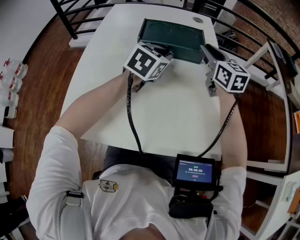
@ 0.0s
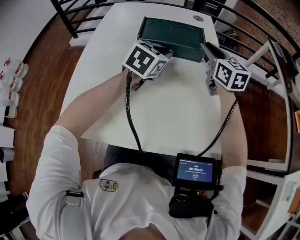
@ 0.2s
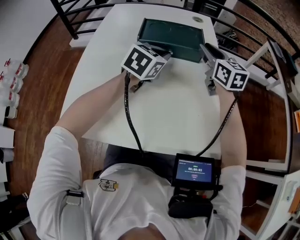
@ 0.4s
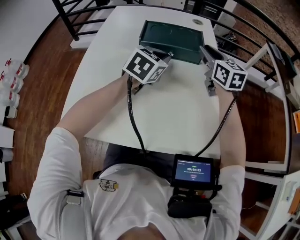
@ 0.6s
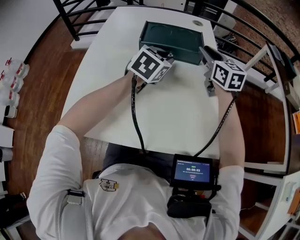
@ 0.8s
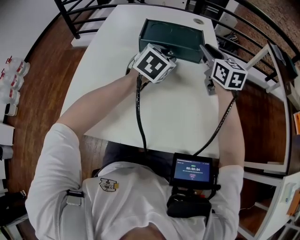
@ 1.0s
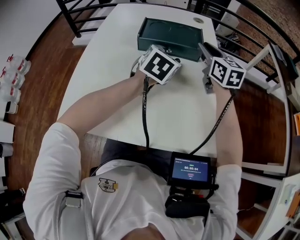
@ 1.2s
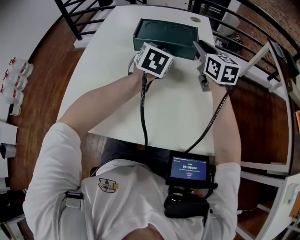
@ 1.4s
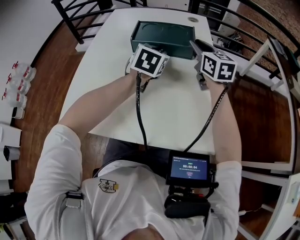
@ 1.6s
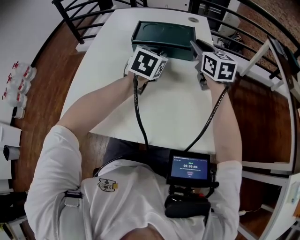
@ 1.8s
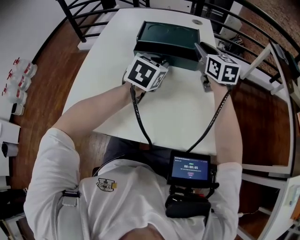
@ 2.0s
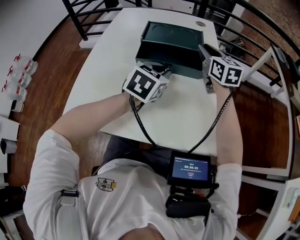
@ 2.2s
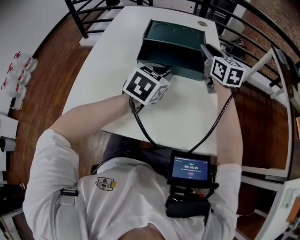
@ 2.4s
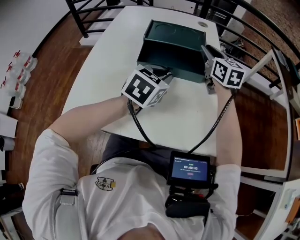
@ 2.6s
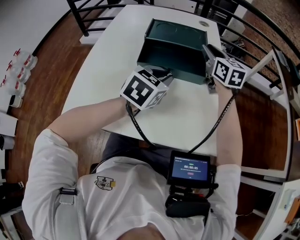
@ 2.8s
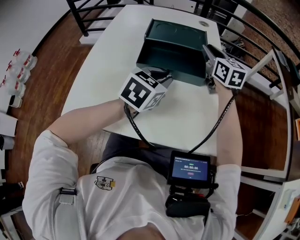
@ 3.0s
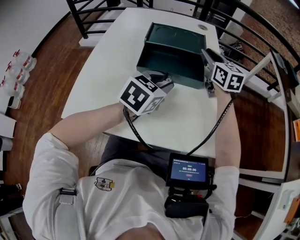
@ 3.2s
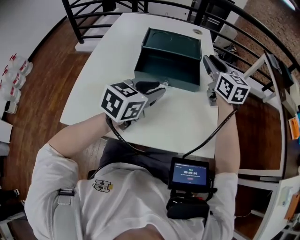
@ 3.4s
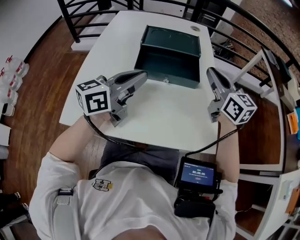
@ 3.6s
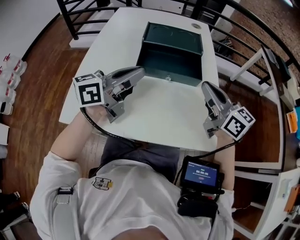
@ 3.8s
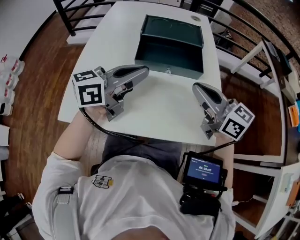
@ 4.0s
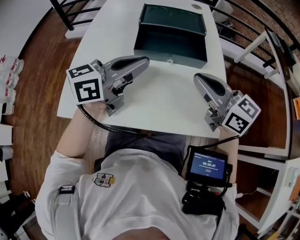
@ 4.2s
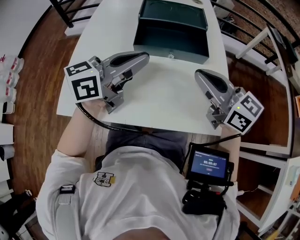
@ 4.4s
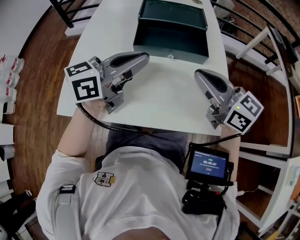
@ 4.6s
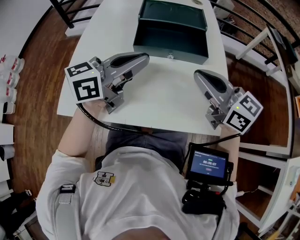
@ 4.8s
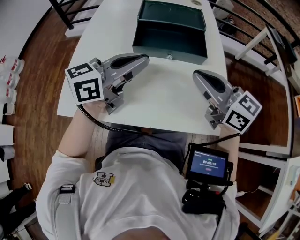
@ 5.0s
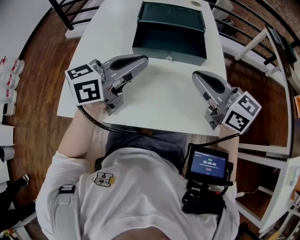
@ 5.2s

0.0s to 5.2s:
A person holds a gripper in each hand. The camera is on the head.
0.0s to 1.8s: The left gripper opens, then closes again.
1.8s to 3.4s: The left gripper travels backward by roughly 15 cm, and changes its angle by about 20 degrees, while the right gripper changes place by roughly 5 cm.
3.4s to 5.2s: The right gripper travels backward by about 20 cm, swivels roughly 30 degrees, and closes up, while the left gripper shifts about 5 cm to the left, changes its angle by approximately 30 degrees, and closes.

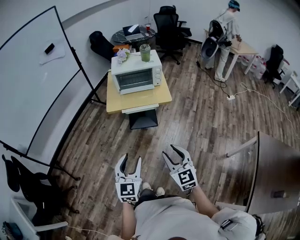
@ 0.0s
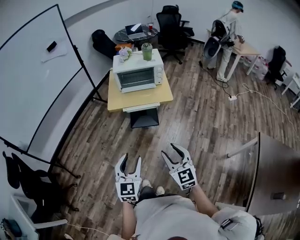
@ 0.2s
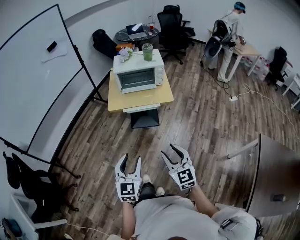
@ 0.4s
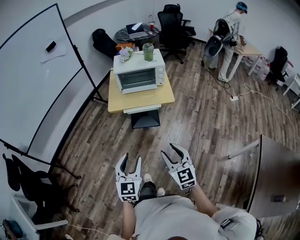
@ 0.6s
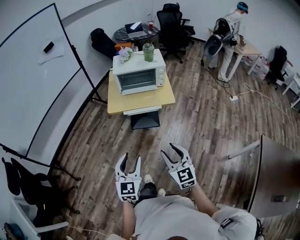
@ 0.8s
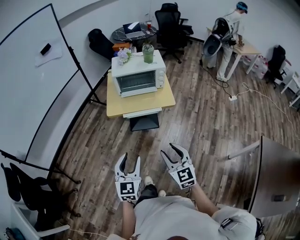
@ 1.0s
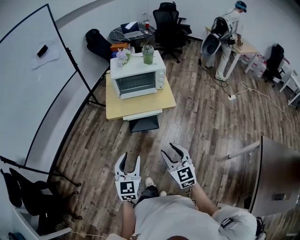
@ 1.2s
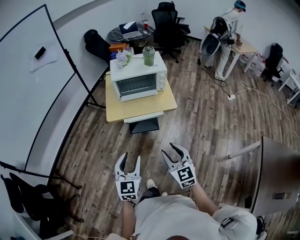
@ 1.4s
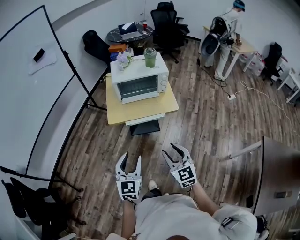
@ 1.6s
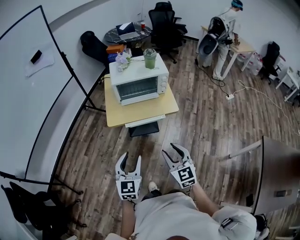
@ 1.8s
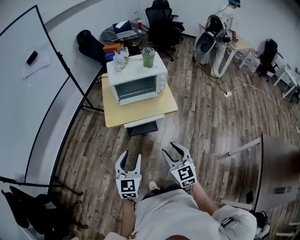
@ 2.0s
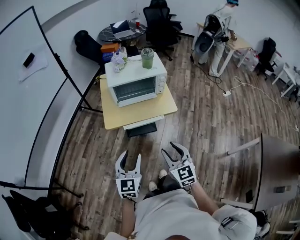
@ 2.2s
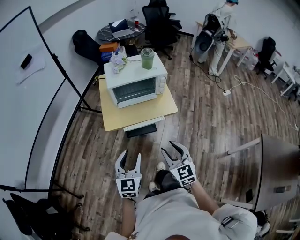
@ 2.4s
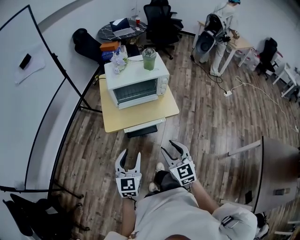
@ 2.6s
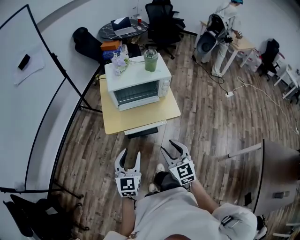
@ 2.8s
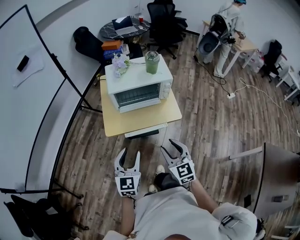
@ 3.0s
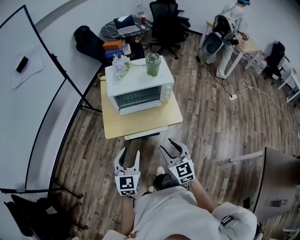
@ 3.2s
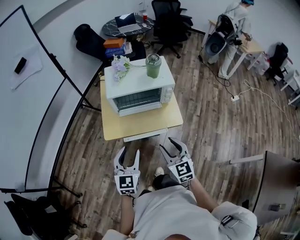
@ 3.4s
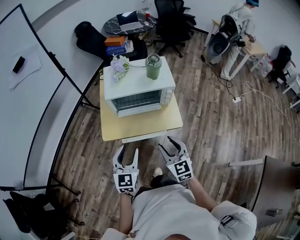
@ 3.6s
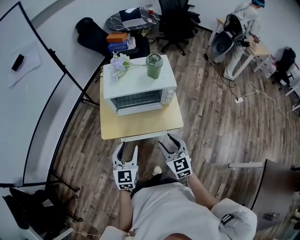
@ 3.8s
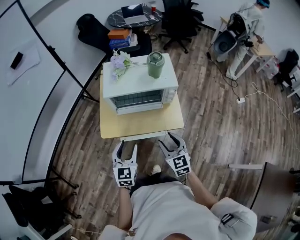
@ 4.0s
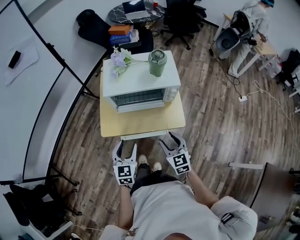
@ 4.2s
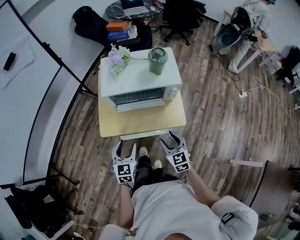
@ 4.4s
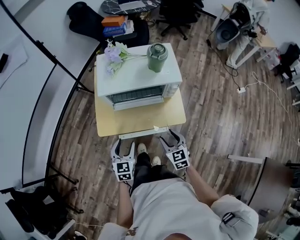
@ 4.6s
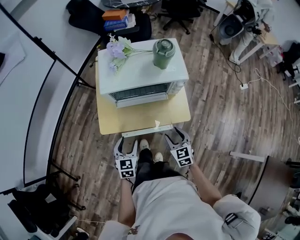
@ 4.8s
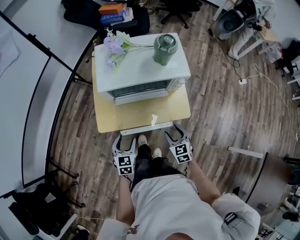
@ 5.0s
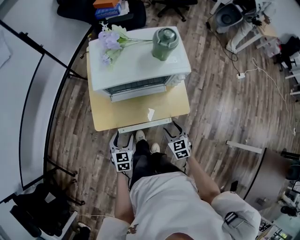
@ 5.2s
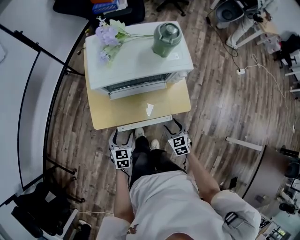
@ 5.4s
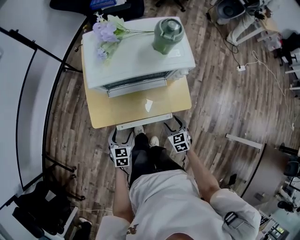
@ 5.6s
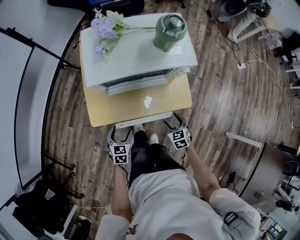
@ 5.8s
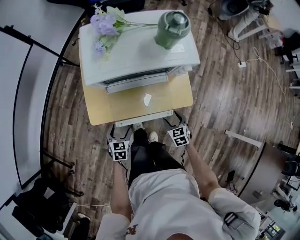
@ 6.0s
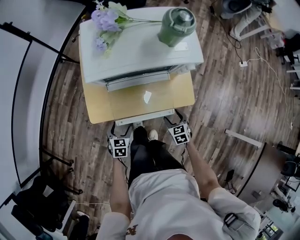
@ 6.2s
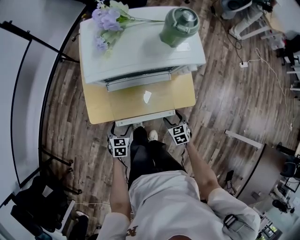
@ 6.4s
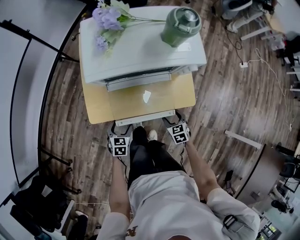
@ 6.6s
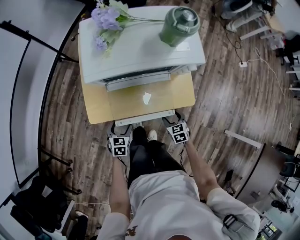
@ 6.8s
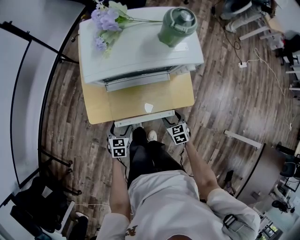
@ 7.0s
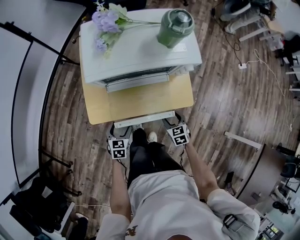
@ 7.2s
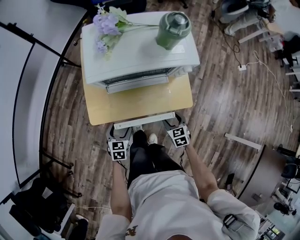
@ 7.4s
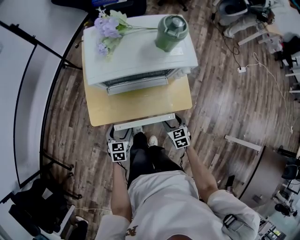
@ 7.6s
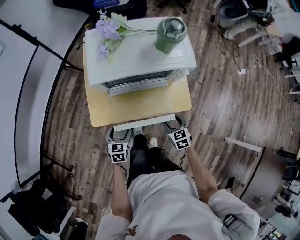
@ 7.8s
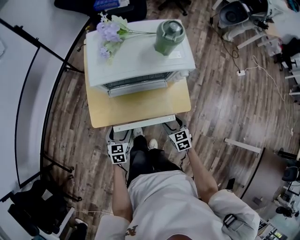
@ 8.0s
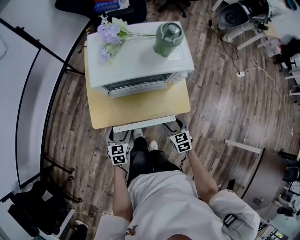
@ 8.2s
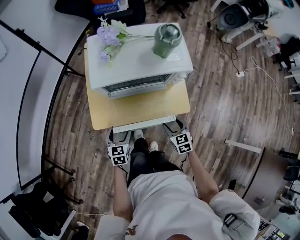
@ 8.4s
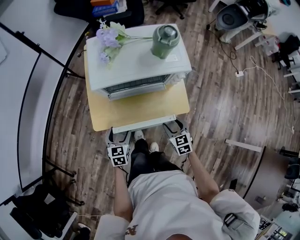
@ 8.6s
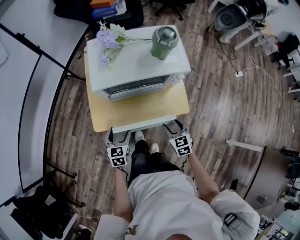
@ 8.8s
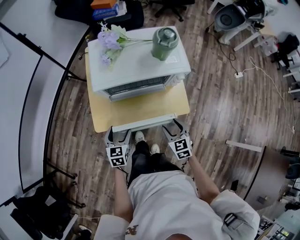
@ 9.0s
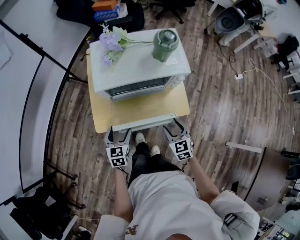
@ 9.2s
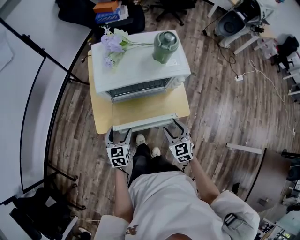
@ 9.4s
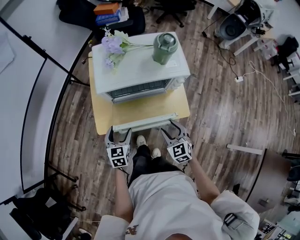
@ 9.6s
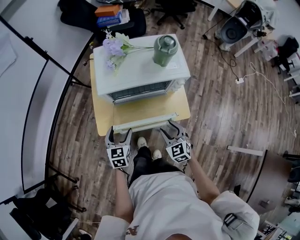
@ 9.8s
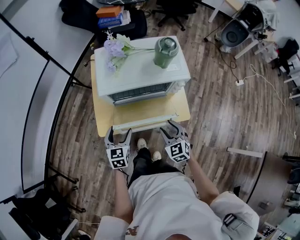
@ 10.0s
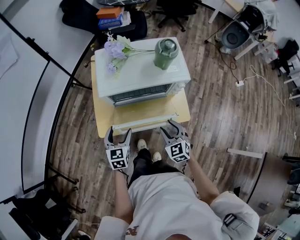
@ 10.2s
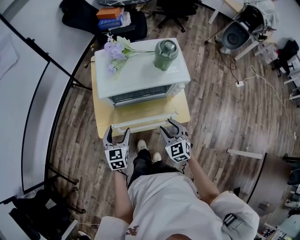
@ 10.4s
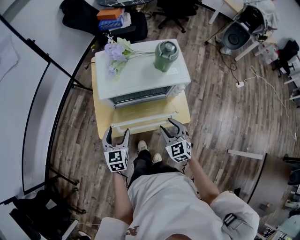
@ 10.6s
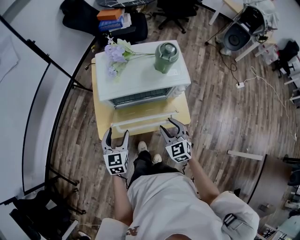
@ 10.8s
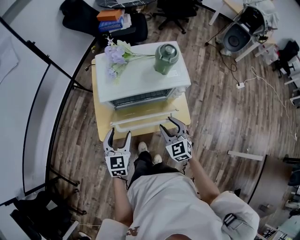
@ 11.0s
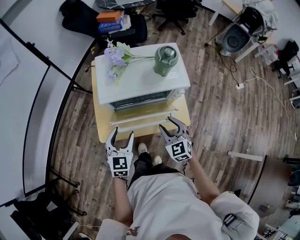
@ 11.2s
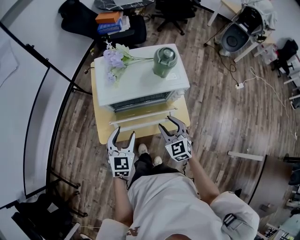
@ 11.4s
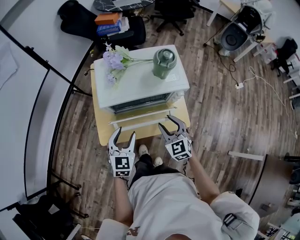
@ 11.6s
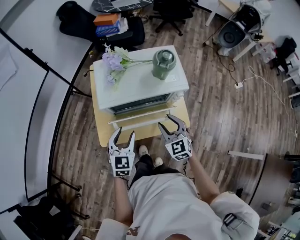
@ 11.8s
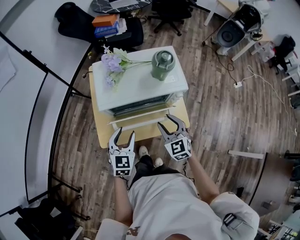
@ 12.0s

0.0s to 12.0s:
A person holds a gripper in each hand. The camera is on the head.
0.0s to 1.6s: The two grippers go about 15 cm forward.
1.6s to 3.0s: The grippers both shift forward by approximately 15 cm.
3.0s to 4.4s: The right gripper is displaced forward, downward and to the right by approximately 20 cm. Meanwhile the left gripper heads forward and downward, covering some 20 cm.
4.4s to 6.0s: Both grippers move downward, about 20 cm. The left gripper swivels about 30 degrees. Meanwhile the right gripper changes its angle by roughly 30 degrees.
6.0s to 7.6s: The grippers make only small movements.
7.6s to 9.0s: The grippers both shift upward by roughly 10 cm.
9.0s to 10.4s: Both grippers travel together upward, about 5 cm.
10.4s to 12.0s: The left gripper goes roughly 5 cm upward, and closes, while the right gripper goes approximately 10 cm forward and upward.

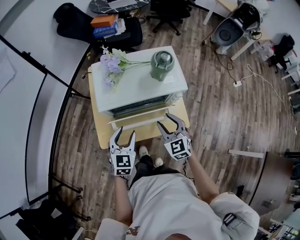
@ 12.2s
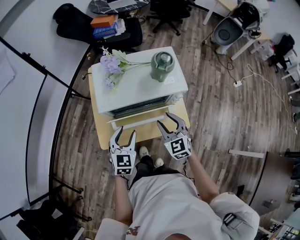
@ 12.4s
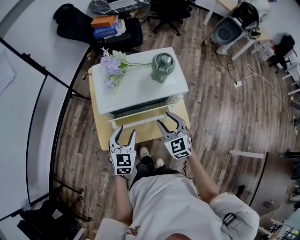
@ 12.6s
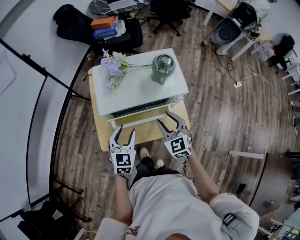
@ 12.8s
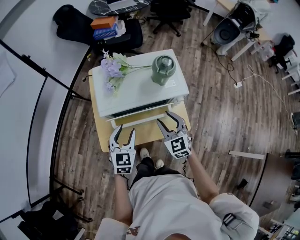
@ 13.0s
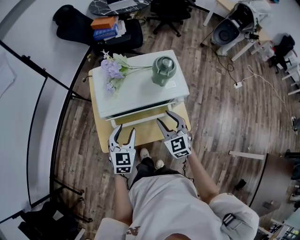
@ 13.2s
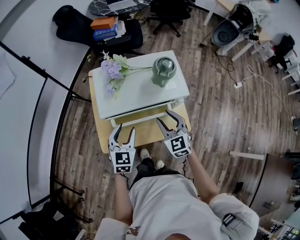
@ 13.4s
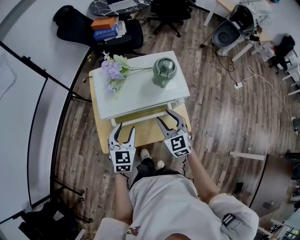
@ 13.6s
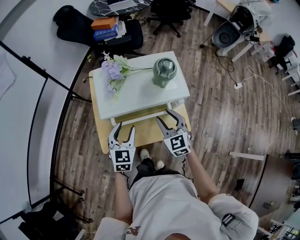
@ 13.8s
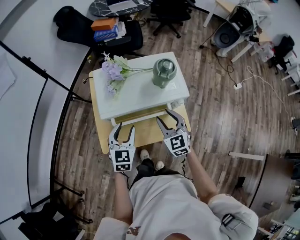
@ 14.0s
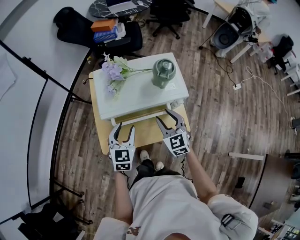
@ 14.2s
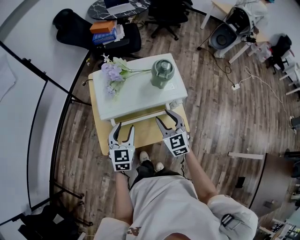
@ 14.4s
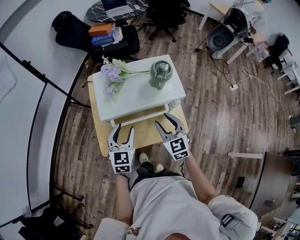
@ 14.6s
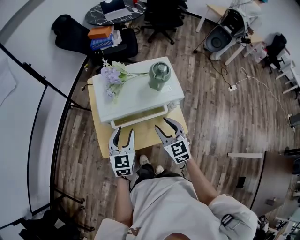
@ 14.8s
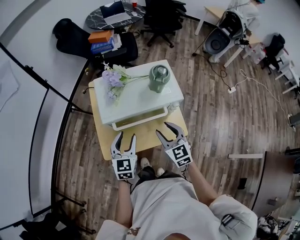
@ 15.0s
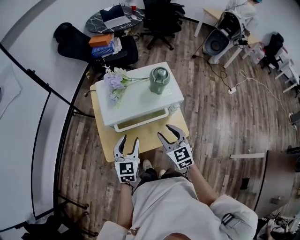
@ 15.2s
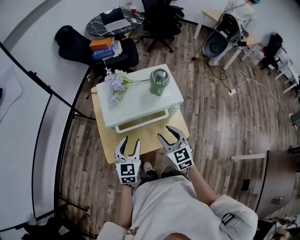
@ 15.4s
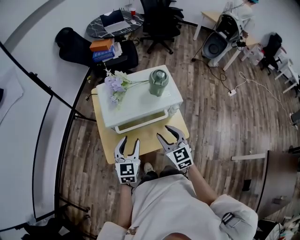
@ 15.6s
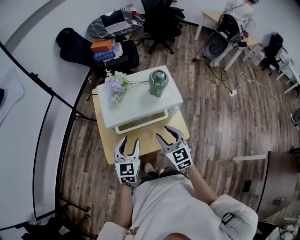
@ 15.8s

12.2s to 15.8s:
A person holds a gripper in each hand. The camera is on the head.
12.2s to 14.0s: Both grippers move forward, some 5 cm.
14.0s to 15.8s: The left gripper moves roughly 5 cm, while the right gripper goes roughly 5 cm backward.

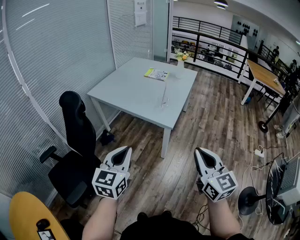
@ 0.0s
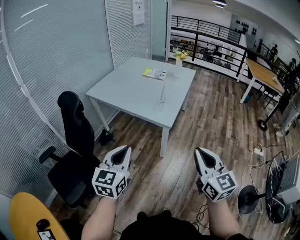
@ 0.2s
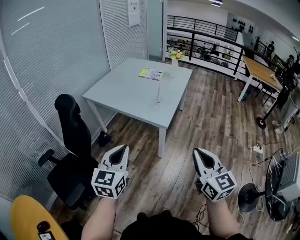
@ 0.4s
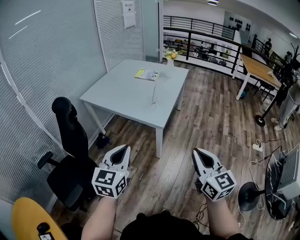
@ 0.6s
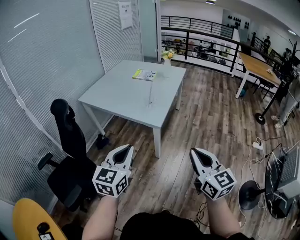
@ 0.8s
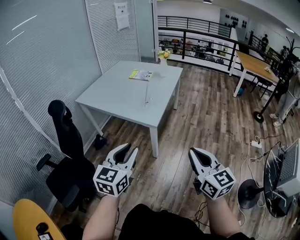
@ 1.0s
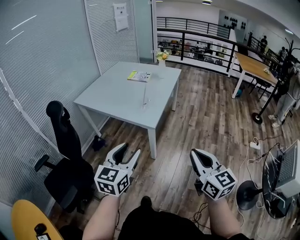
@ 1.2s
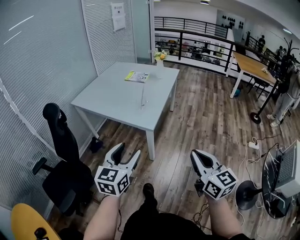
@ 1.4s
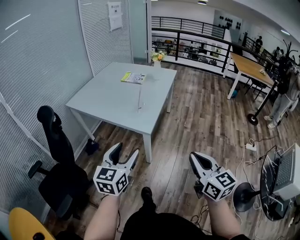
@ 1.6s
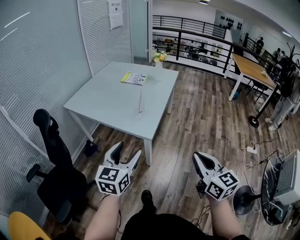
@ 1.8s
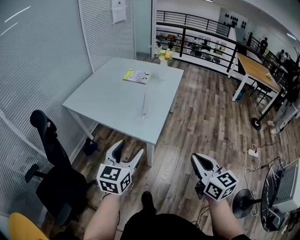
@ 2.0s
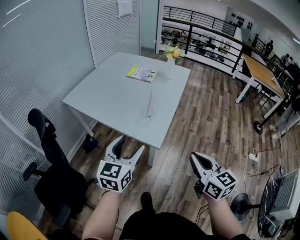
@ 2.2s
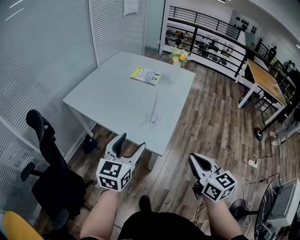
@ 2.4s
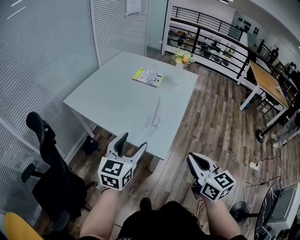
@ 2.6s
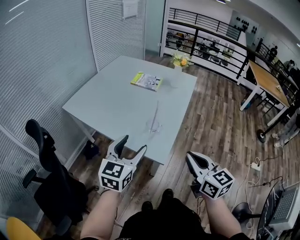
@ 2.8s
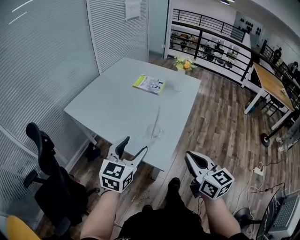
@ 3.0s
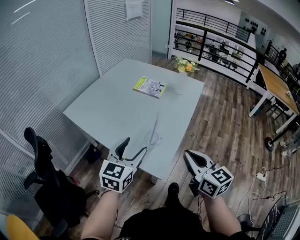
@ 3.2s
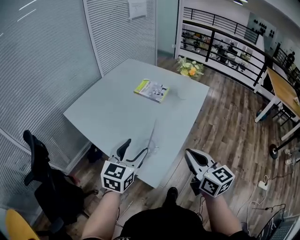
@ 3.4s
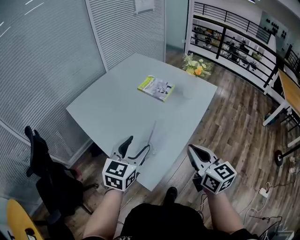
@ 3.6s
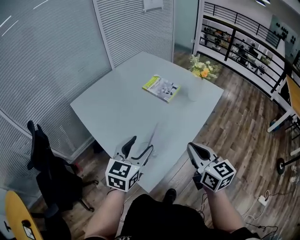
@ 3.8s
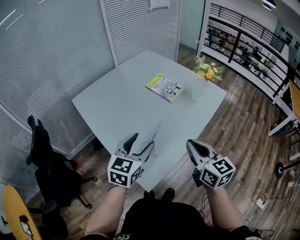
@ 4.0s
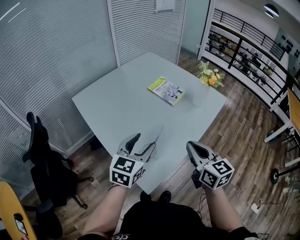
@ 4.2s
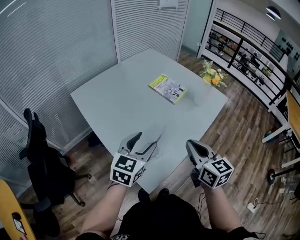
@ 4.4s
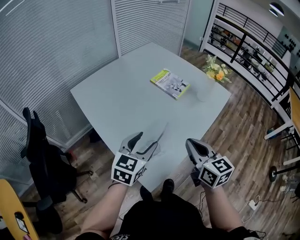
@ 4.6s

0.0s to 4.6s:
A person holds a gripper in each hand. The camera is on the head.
0.0s to 1.6s: The right gripper heads to the right, covering roughly 10 cm. Meanwhile the left gripper shifts roughly 15 cm to the right and forward, and opens.
1.6s to 3.0s: Both grippers move forward, roughly 35 cm.
3.0s to 4.6s: The left gripper is displaced forward and to the right by some 20 cm. Meanwhile the right gripper is displaced forward by some 25 cm.
